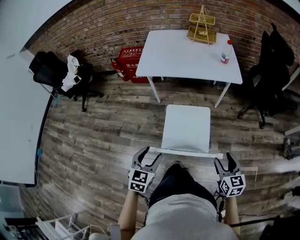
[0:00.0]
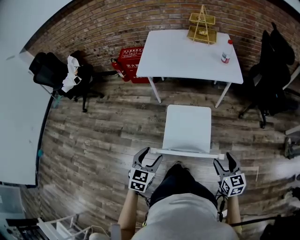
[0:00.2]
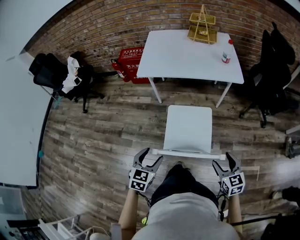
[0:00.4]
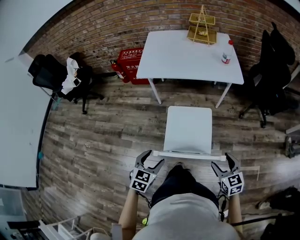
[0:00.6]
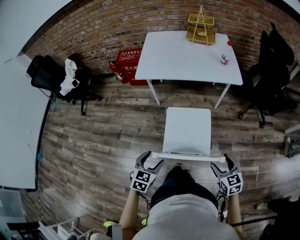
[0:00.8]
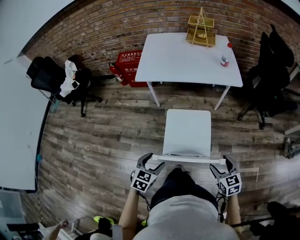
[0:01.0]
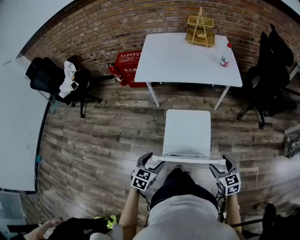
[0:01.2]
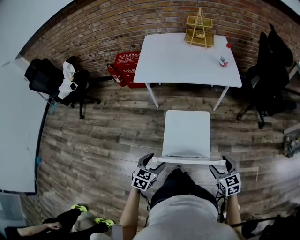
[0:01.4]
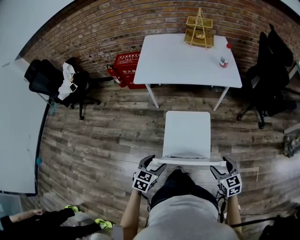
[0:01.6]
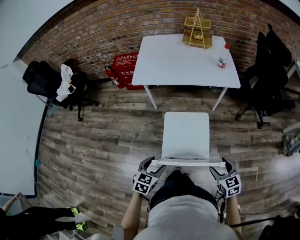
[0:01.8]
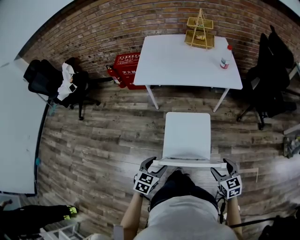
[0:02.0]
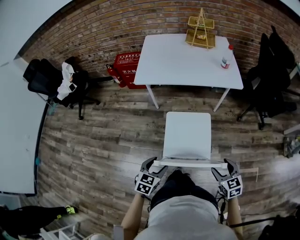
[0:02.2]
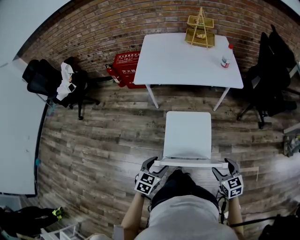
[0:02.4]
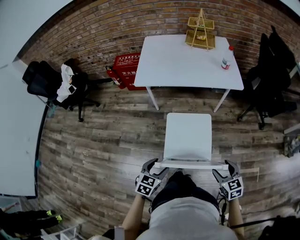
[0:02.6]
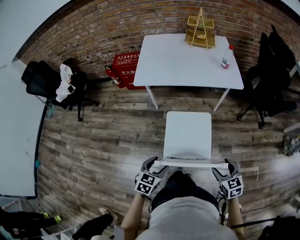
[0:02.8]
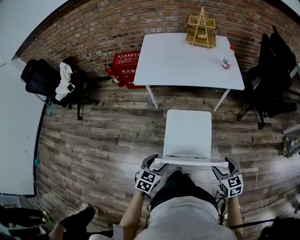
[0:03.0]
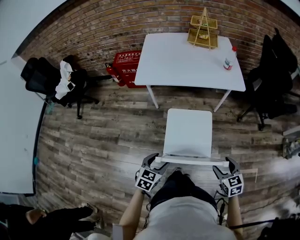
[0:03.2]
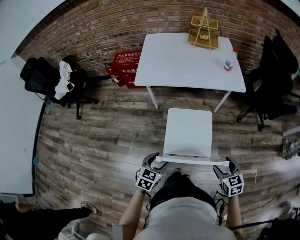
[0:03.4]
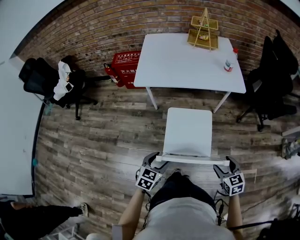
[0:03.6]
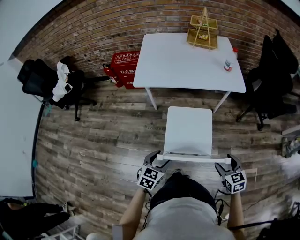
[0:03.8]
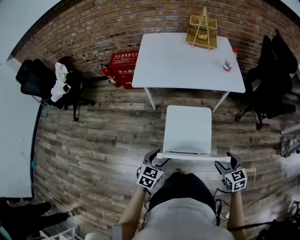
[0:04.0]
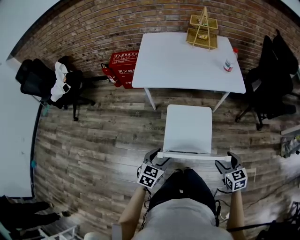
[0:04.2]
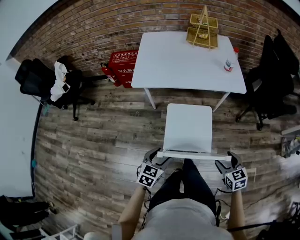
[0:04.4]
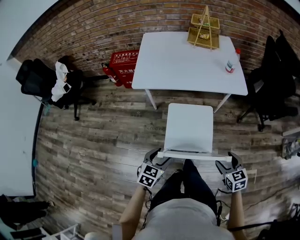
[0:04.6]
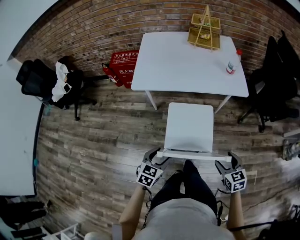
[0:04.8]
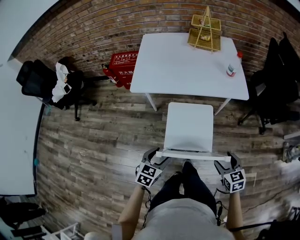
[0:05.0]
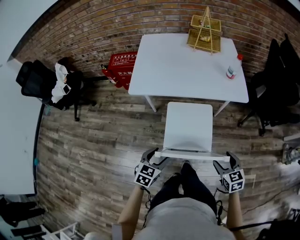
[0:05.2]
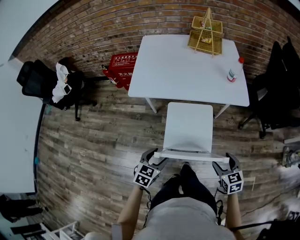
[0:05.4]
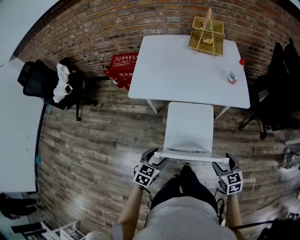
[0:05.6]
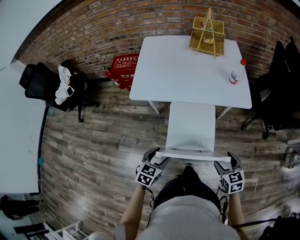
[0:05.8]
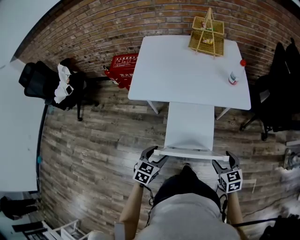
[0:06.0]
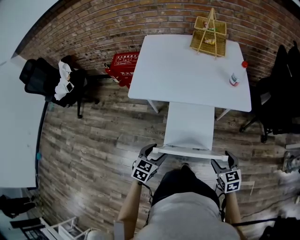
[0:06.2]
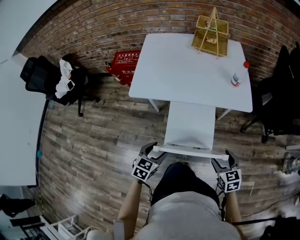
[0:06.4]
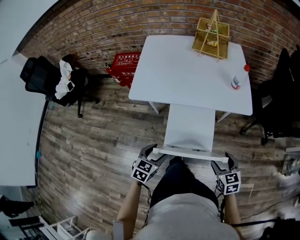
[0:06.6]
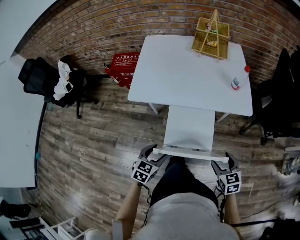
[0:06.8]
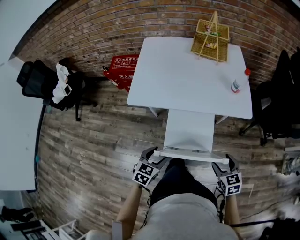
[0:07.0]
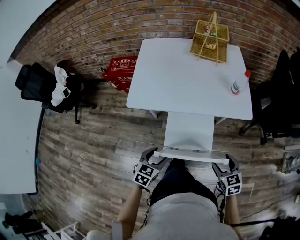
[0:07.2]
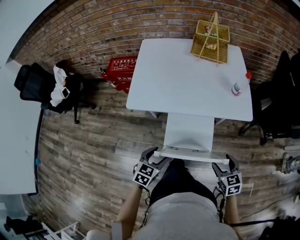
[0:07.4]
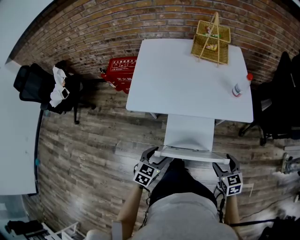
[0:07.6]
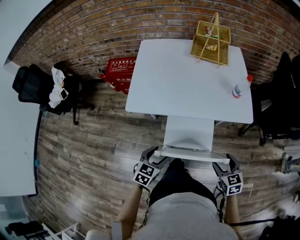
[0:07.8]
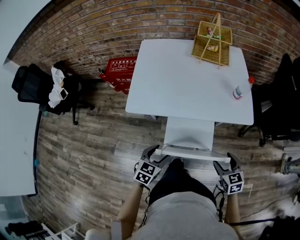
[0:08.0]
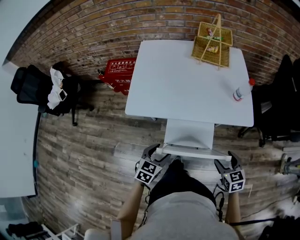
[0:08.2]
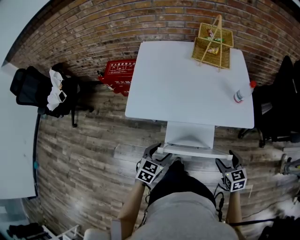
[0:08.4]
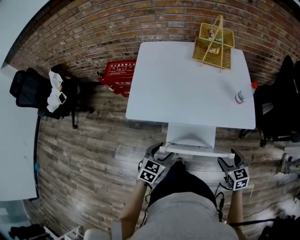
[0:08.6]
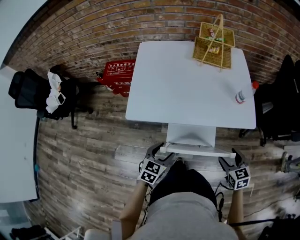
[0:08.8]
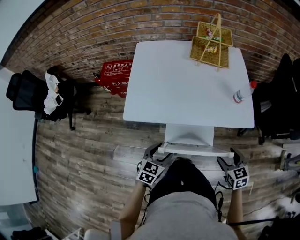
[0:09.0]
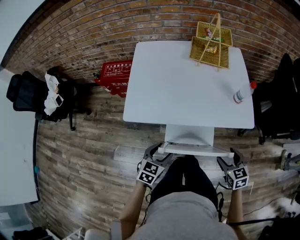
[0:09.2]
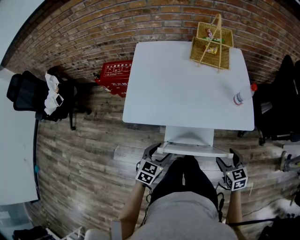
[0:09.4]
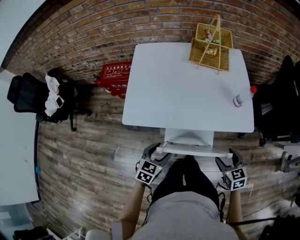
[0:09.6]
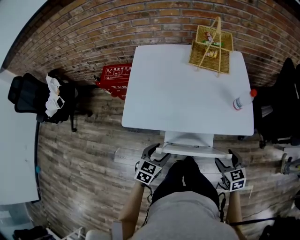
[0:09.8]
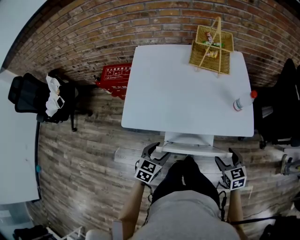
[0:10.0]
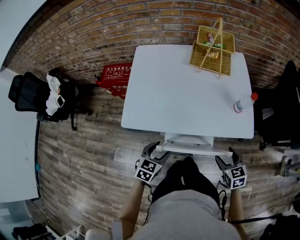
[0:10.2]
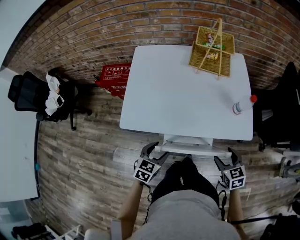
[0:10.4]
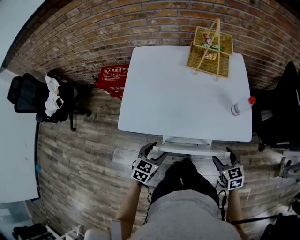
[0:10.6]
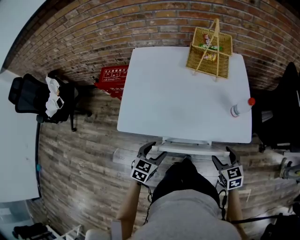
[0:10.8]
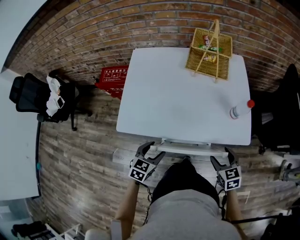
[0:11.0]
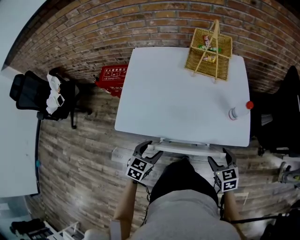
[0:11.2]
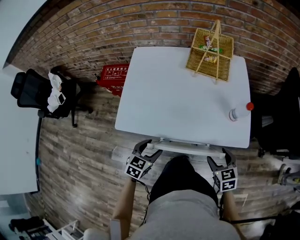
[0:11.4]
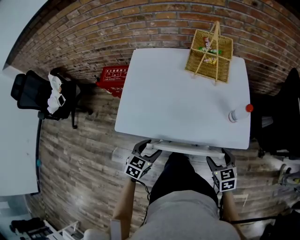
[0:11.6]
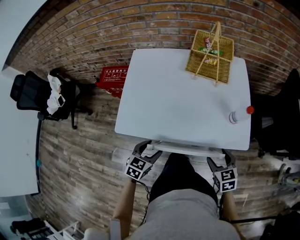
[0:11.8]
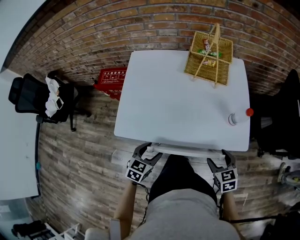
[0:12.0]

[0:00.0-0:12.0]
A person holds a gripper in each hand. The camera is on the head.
0:00.0 to 0:01.6: The left gripper is displaced downward by roughly 10 cm, while the right gripper changes place by about 5 cm.
0:01.6 to 0:03.0: The grippers stay close to where they were, moving slightly.
0:03.0 to 0:04.4: The grippers both shift forward by about 5 cm.
0:04.4 to 0:06.0: The grippers both shift forward by roughly 10 cm.
0:06.0 to 0:07.6: Both grippers move forward, some 5 cm.
0:07.6 to 0:09.0: Both grippers move forward, about 10 cm.
0:09.0 to 0:10.4: Both grippers move forward, roughly 5 cm.
0:10.4 to 0:12.0: The right gripper moves forward, approximately 5 cm.

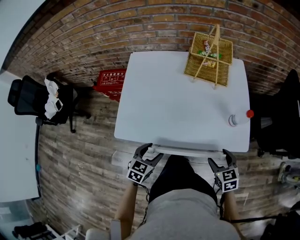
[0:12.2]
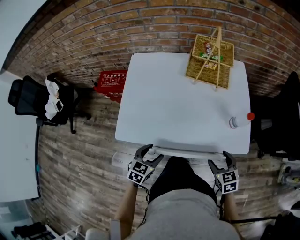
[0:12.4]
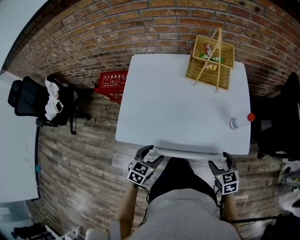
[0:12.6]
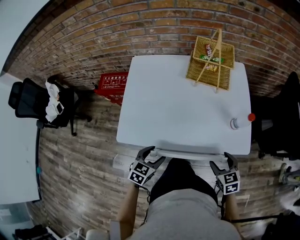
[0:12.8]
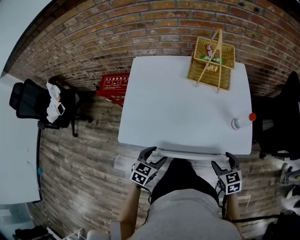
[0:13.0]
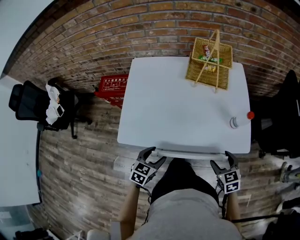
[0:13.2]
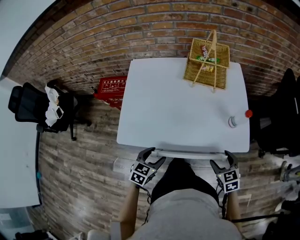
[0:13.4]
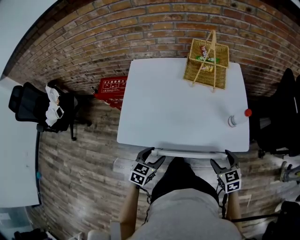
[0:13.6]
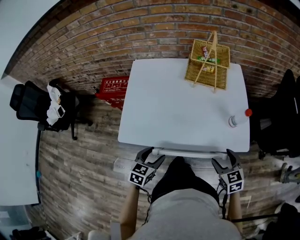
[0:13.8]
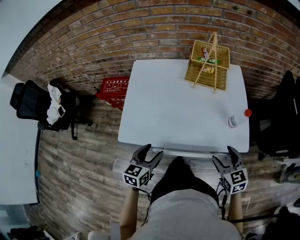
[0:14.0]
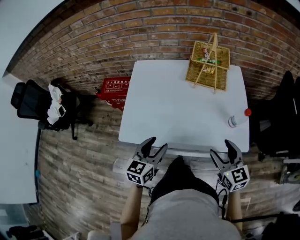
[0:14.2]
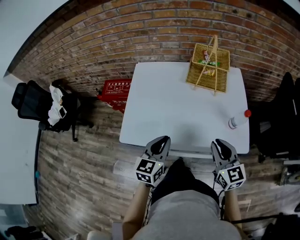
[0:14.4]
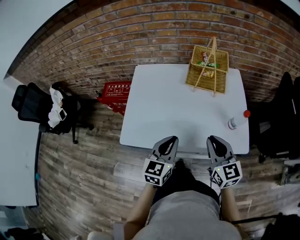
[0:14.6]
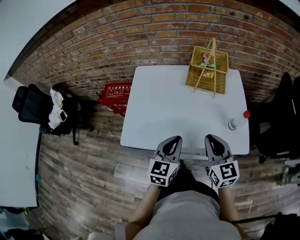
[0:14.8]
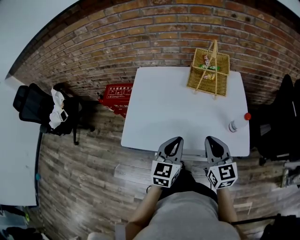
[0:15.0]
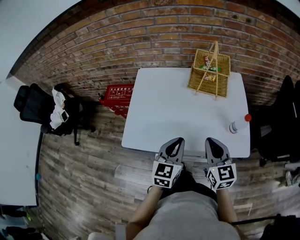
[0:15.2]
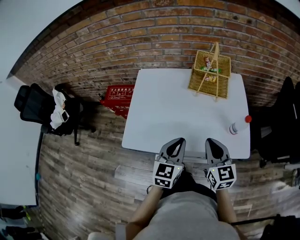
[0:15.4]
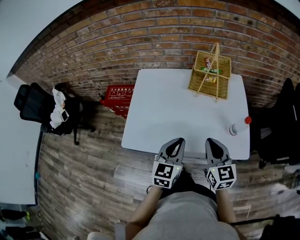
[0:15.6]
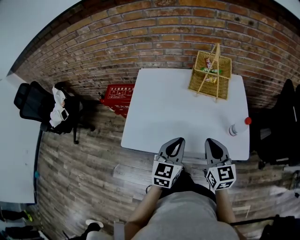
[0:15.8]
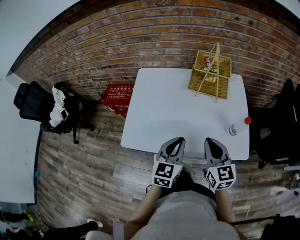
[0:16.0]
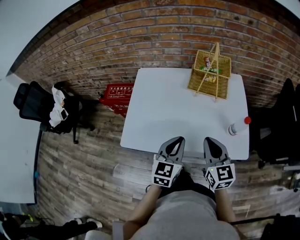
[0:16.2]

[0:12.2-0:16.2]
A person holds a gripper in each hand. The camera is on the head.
0:12.2 to 0:13.6: Both grippers stay put.
0:13.6 to 0:14.8: The right gripper moves upward, to the left and forward, about 20 cm, changes its angle by some 30 degrees, and closes its fingers. Meanwhile the left gripper moves upward, to the right and forward, roughly 20 cm, rotates some 30 degrees, and closes.
0:14.8 to 0:16.2: The grippers make only small movements.

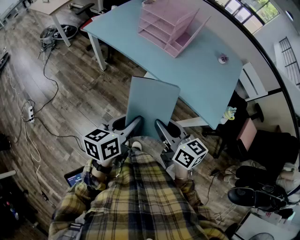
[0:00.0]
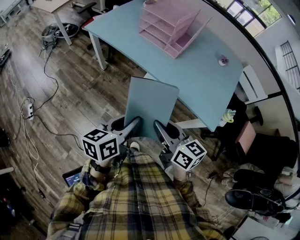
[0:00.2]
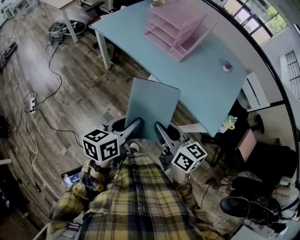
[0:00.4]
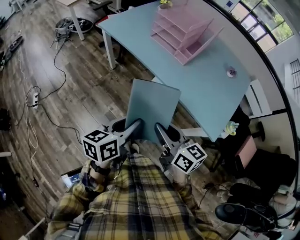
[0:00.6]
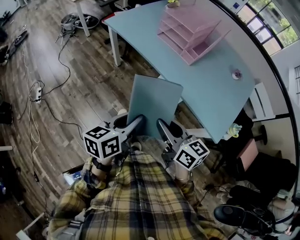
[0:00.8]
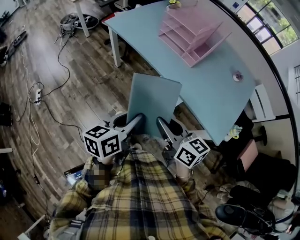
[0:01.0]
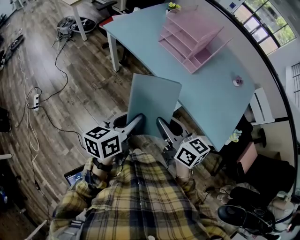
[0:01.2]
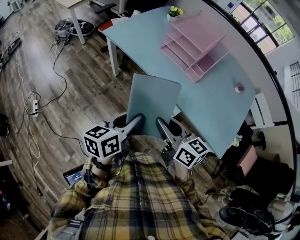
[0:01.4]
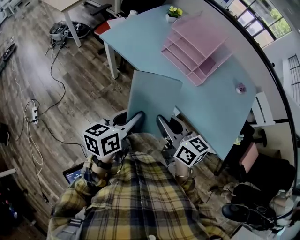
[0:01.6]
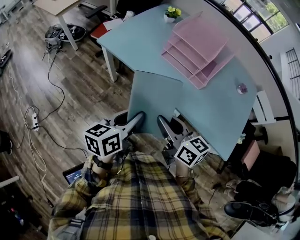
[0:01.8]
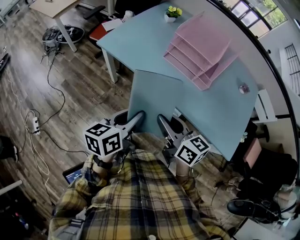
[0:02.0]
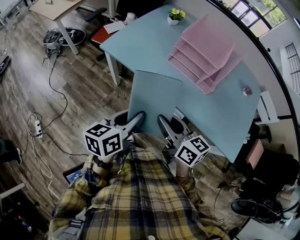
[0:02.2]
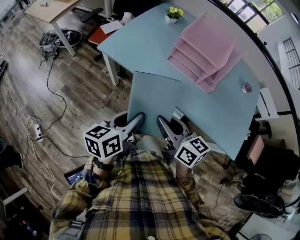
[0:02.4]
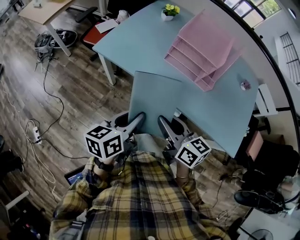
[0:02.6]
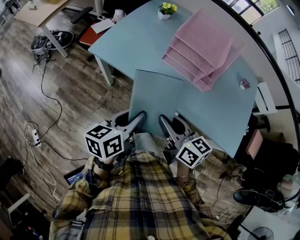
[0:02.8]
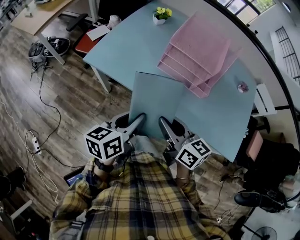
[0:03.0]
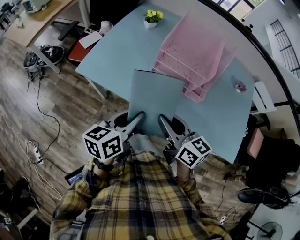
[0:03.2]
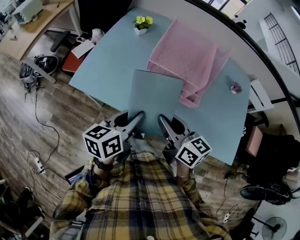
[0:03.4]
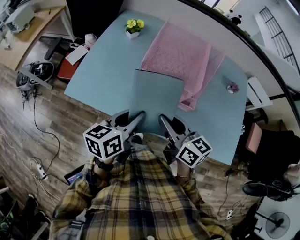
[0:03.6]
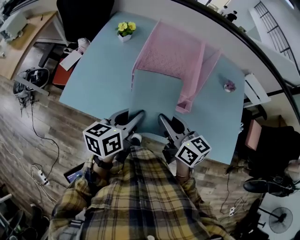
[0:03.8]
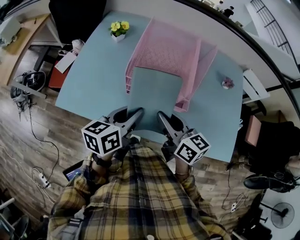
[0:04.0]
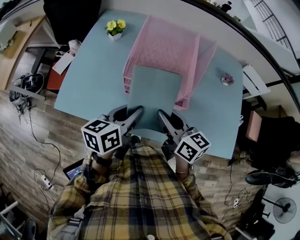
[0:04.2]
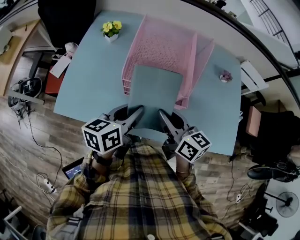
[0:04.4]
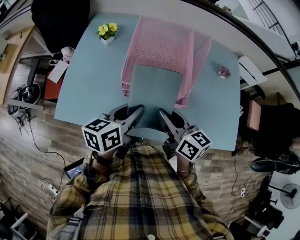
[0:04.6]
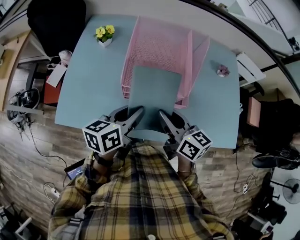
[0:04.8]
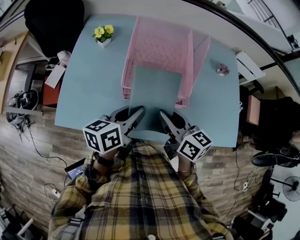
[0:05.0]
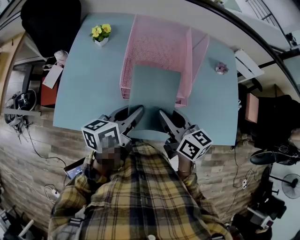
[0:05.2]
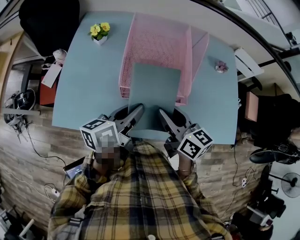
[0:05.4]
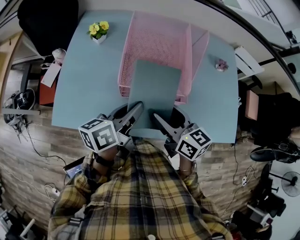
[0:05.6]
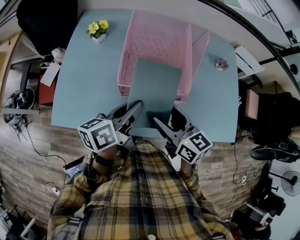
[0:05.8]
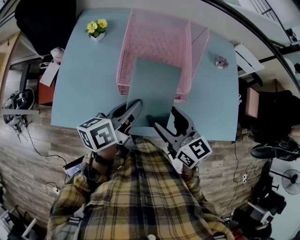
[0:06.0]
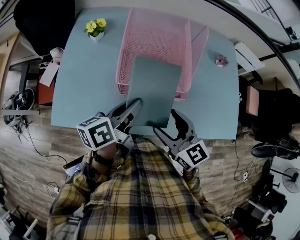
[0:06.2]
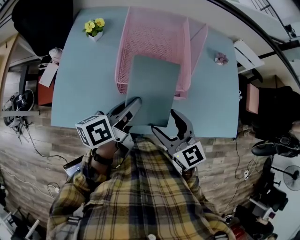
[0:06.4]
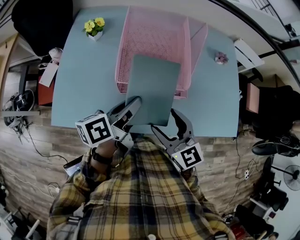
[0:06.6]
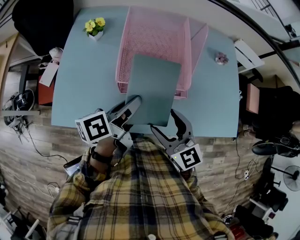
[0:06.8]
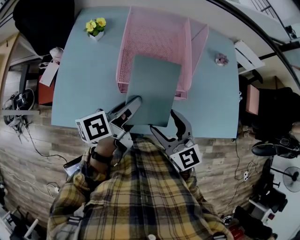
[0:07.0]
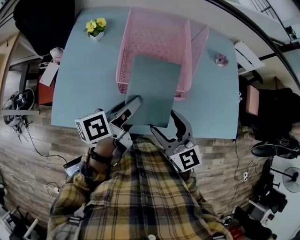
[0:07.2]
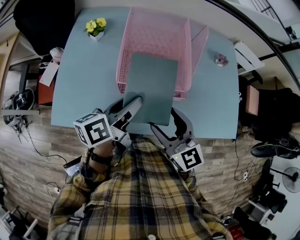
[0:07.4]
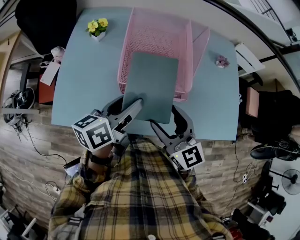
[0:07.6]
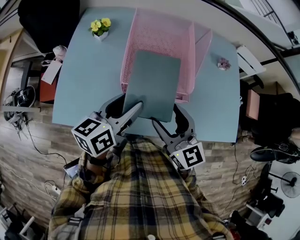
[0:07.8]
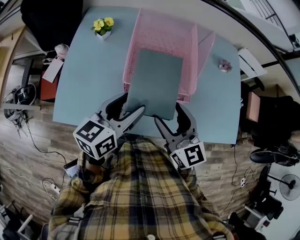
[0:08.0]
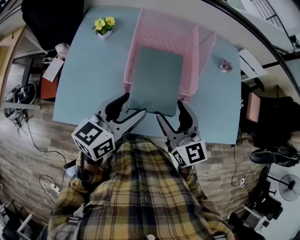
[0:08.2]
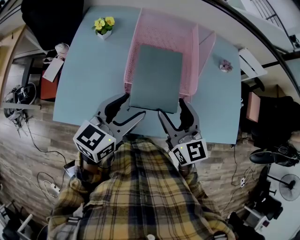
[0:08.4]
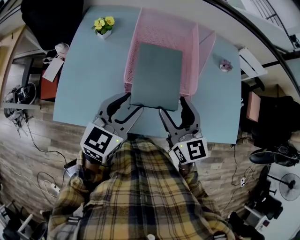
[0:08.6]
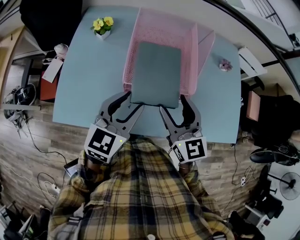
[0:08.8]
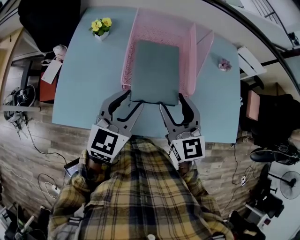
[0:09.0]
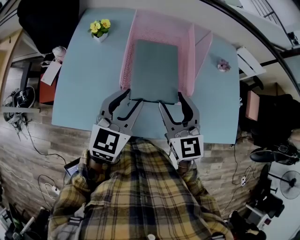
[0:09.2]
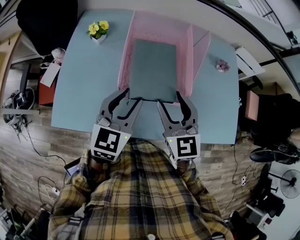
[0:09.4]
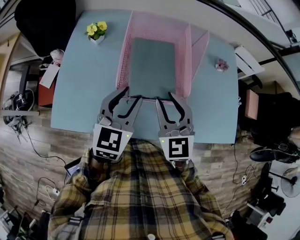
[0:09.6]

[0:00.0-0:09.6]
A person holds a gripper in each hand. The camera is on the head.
0:00.0 to 0:01.6: Both grippers move forward and to the left, approximately 20 cm.
0:01.6 to 0:03.2: Both grippers travel together forward, roughly 20 cm.
0:03.2 to 0:04.8: The right gripper shifts approximately 15 cm forward and to the right. Meanwhile the left gripper heads forward, covering about 20 cm, and changes its angle by some 20 degrees.
0:04.8 to 0:06.4: The left gripper rotates approximately 20 degrees. Meanwhile the right gripper rotates roughly 30 degrees, and opens.
0:06.4 to 0:08.0: The right gripper ends up some 5 cm from where it was. The left gripper rotates approximately 30 degrees, and opens up.
0:08.0 to 0:09.6: The right gripper heads forward, covering approximately 5 cm, rotates roughly 30 degrees, and closes, while the left gripper turns by approximately 30 degrees.
